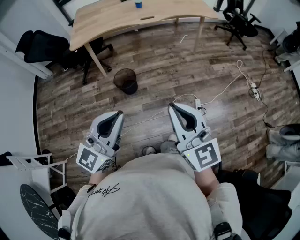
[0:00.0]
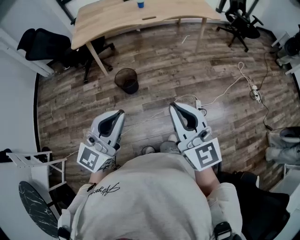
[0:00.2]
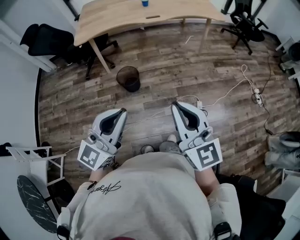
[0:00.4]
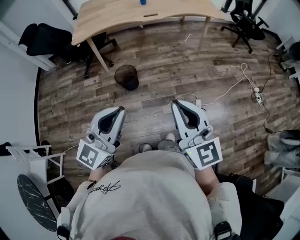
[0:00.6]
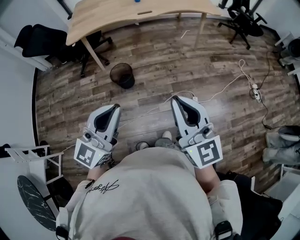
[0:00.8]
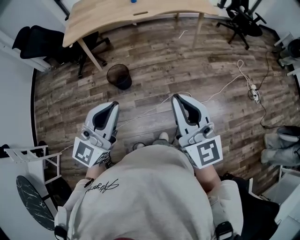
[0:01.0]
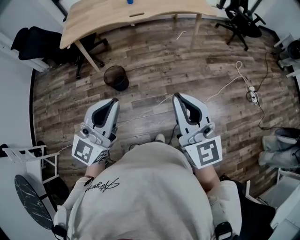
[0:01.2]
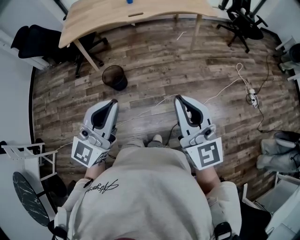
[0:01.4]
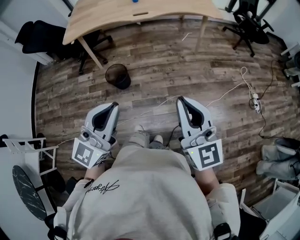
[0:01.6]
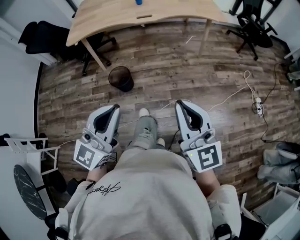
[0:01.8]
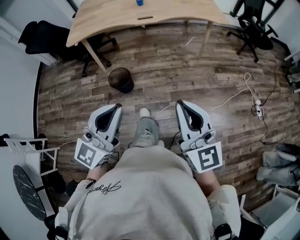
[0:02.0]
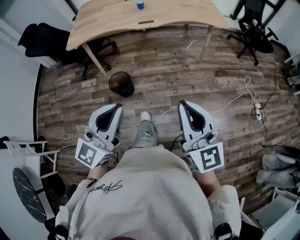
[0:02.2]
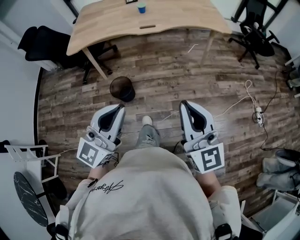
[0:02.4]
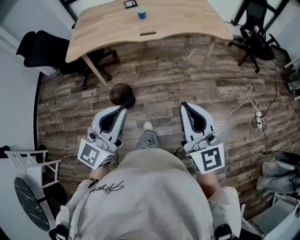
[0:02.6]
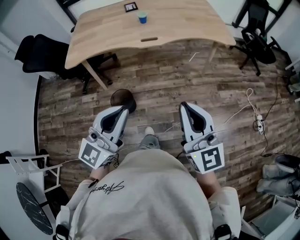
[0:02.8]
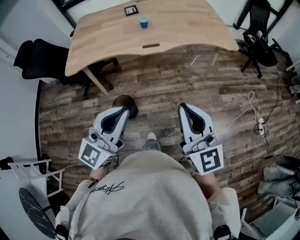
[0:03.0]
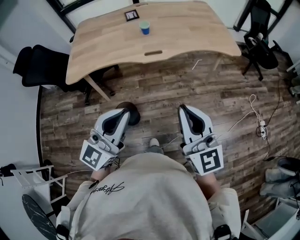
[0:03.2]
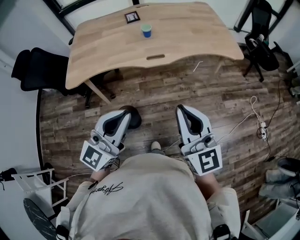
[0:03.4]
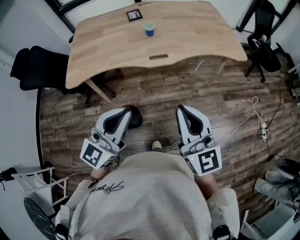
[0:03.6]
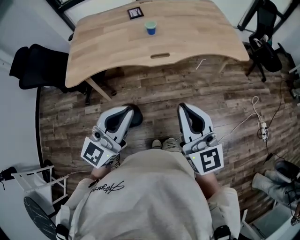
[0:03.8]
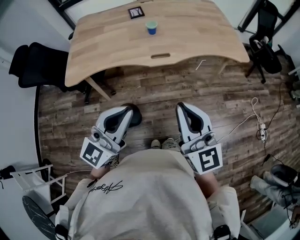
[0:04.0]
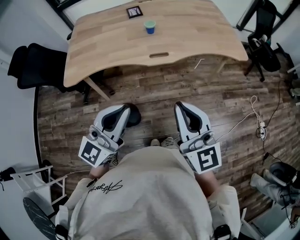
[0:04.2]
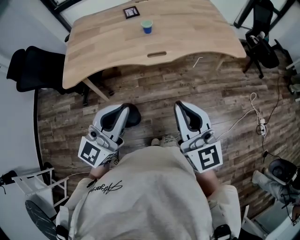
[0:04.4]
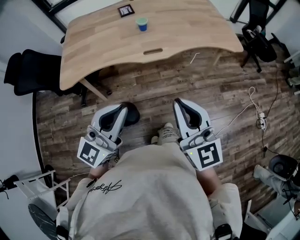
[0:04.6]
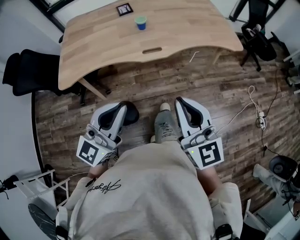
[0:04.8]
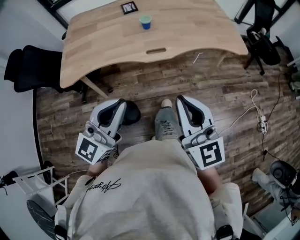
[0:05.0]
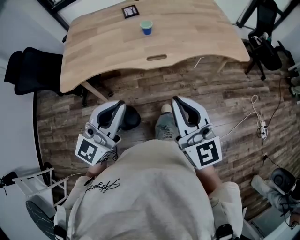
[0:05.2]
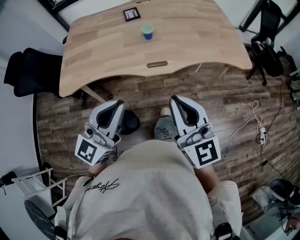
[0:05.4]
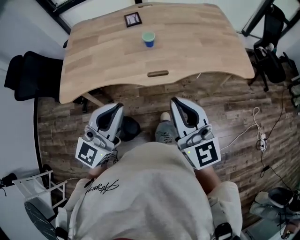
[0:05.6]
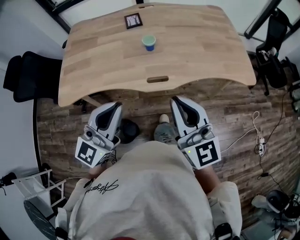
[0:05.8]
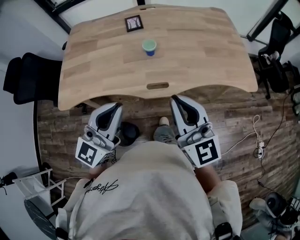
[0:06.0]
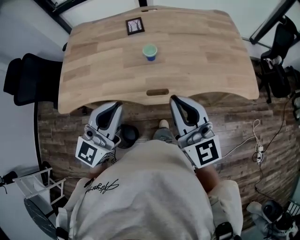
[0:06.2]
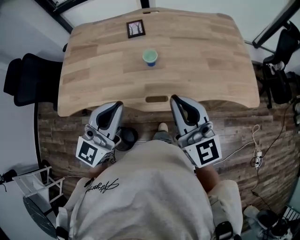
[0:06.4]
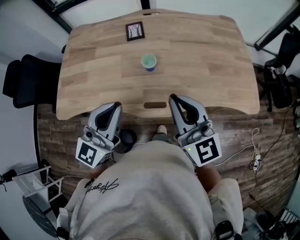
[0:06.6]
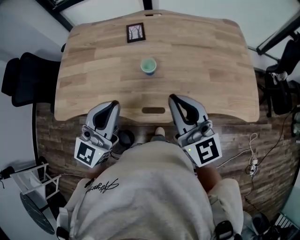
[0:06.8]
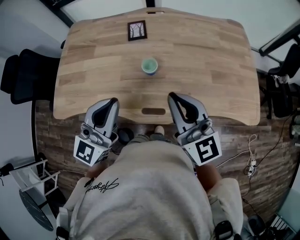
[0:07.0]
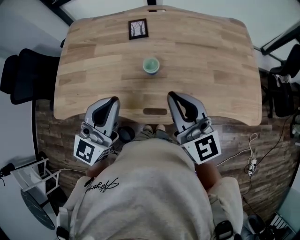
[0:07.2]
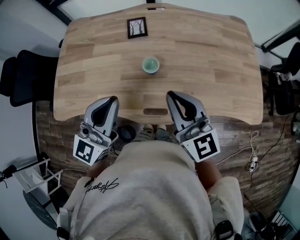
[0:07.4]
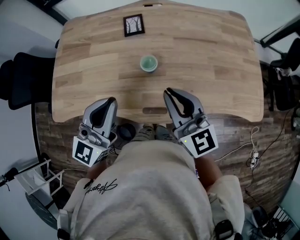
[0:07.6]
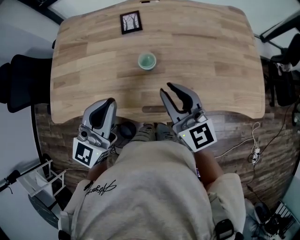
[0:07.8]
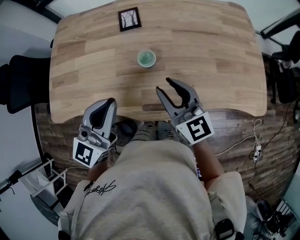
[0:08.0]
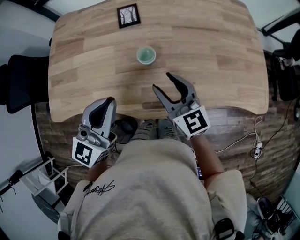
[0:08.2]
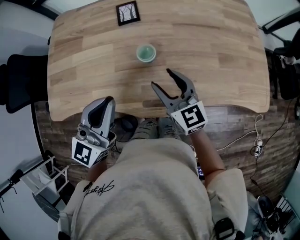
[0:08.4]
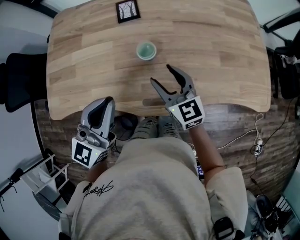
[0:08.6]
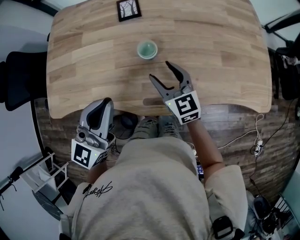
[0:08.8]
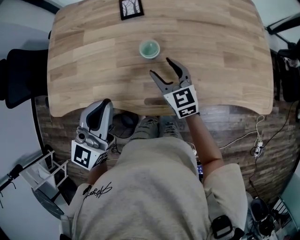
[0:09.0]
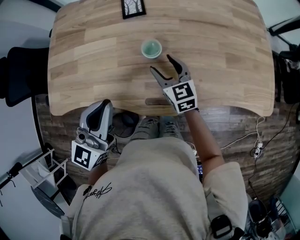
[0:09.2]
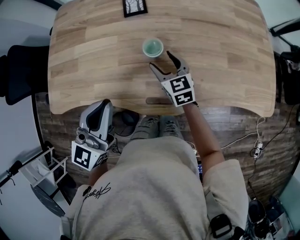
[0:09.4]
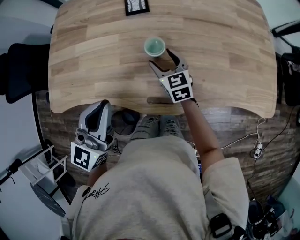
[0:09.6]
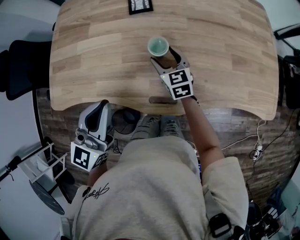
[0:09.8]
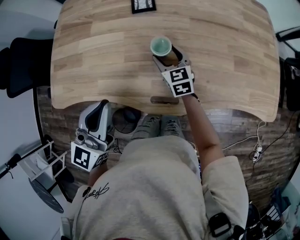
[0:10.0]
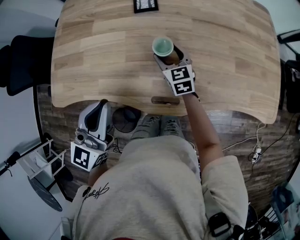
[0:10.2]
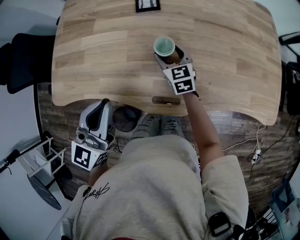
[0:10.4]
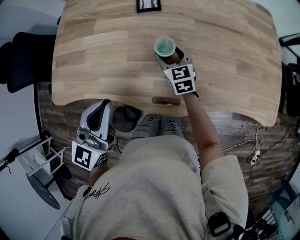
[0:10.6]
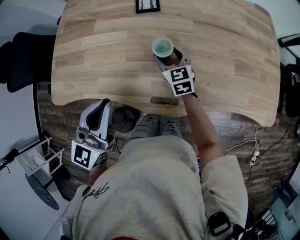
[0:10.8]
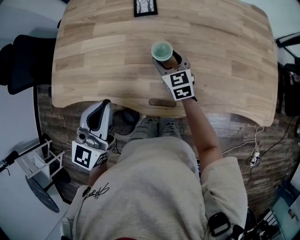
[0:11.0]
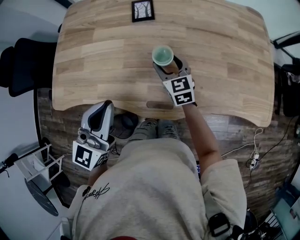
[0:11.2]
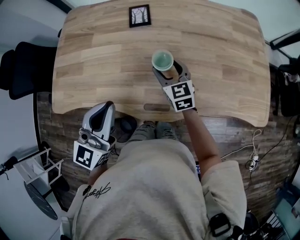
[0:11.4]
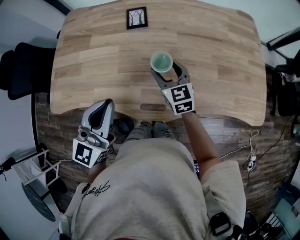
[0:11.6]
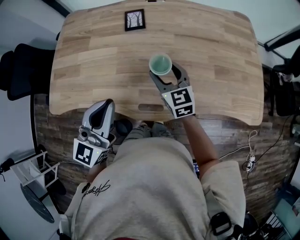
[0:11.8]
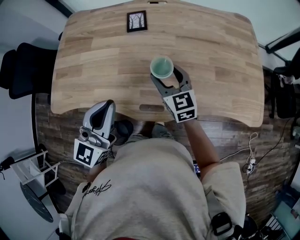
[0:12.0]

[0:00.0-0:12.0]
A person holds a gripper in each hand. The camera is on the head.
0:00.0 to 0:01.6: Both grippers move to the right and forward, roughly 20 cm.
0:01.6 to 0:03.0: The grippers both shift forward by about 25 cm.
0:03.0 to 0:04.4: Both grippers travel together forward and to the left, roughly 15 cm.
0:04.4 to 0:06.0: The two grippers go approximately 25 cm forward.
0:06.0 to 0:07.6: The two grippers go about 20 cm forward.
0:07.6 to 0:09.0: The right gripper moves downward and forward, roughly 20 cm, and opens up. The left gripper shifts by about 5 cm.
0:09.0 to 0:10.4: The right gripper goes some 10 cm forward and downward.
0:10.4 to 0:12.0: The left gripper heads to the right, covering approximately 5 cm. The right gripper shifts roughly 15 cm upward, backward and to the right.

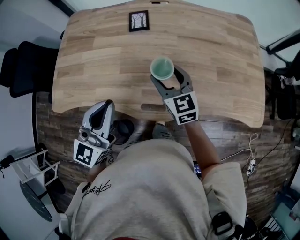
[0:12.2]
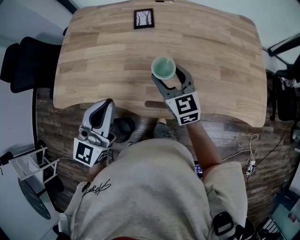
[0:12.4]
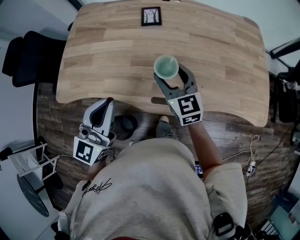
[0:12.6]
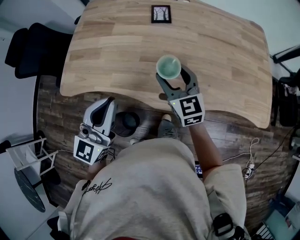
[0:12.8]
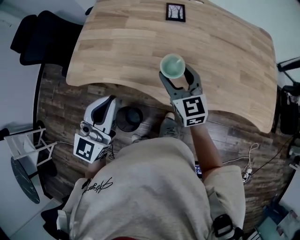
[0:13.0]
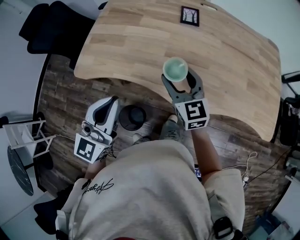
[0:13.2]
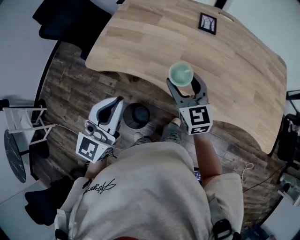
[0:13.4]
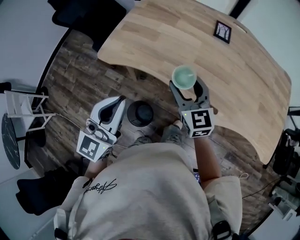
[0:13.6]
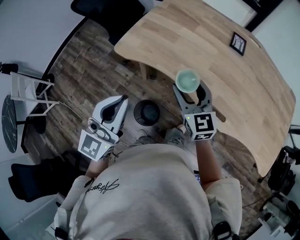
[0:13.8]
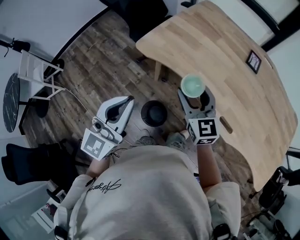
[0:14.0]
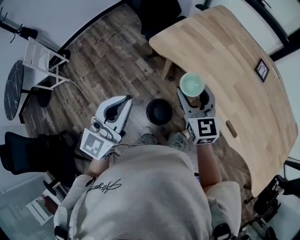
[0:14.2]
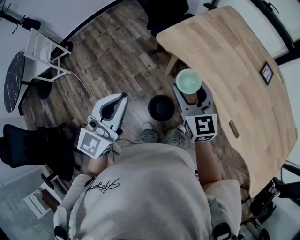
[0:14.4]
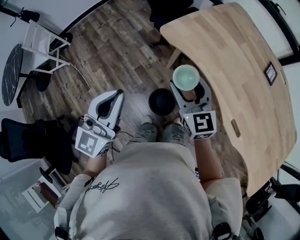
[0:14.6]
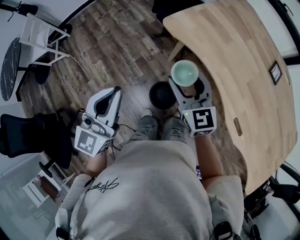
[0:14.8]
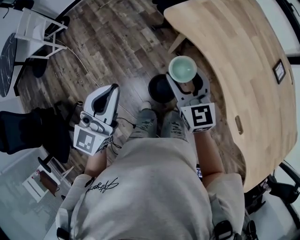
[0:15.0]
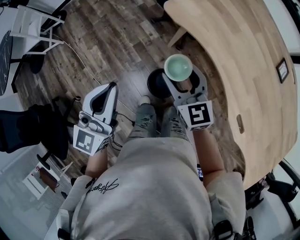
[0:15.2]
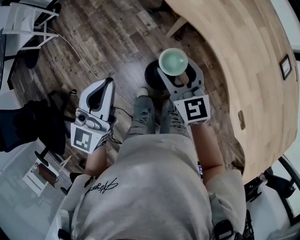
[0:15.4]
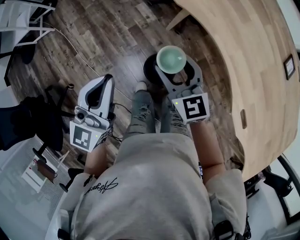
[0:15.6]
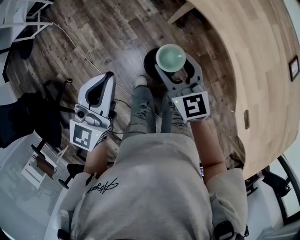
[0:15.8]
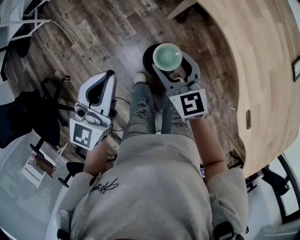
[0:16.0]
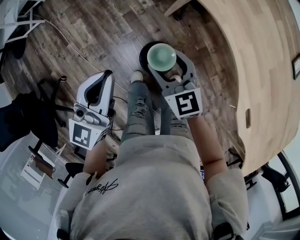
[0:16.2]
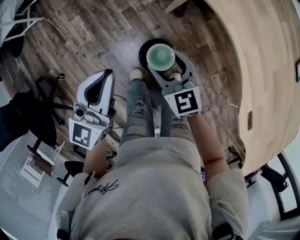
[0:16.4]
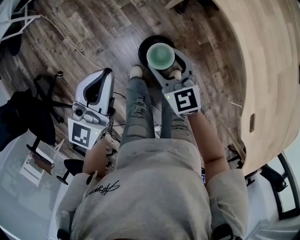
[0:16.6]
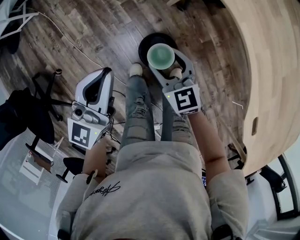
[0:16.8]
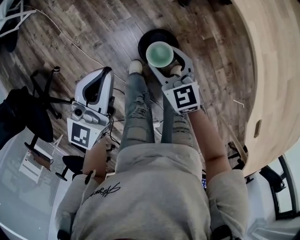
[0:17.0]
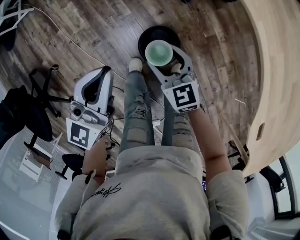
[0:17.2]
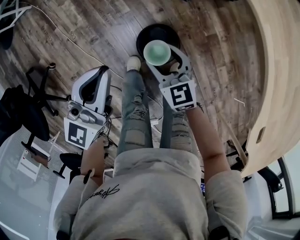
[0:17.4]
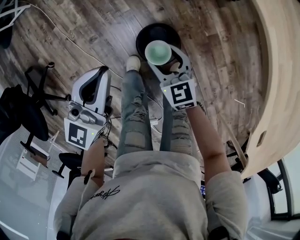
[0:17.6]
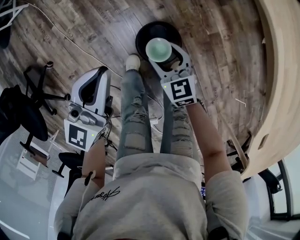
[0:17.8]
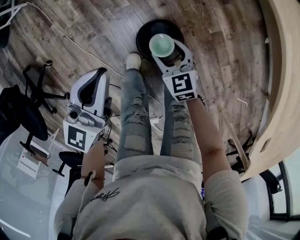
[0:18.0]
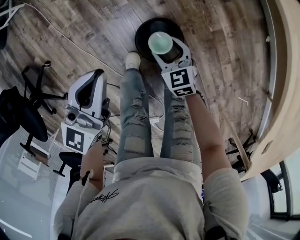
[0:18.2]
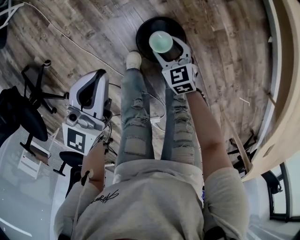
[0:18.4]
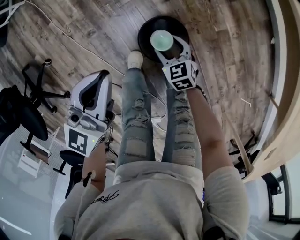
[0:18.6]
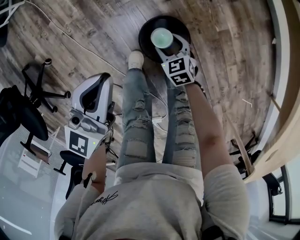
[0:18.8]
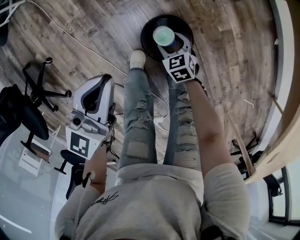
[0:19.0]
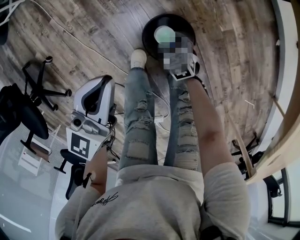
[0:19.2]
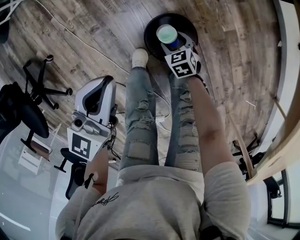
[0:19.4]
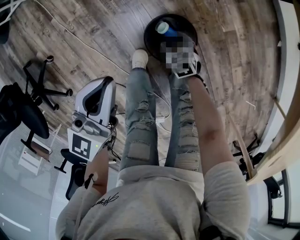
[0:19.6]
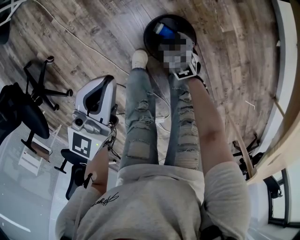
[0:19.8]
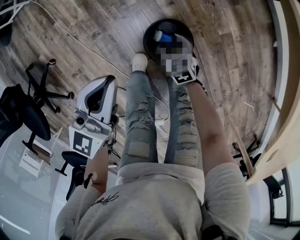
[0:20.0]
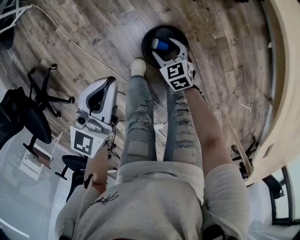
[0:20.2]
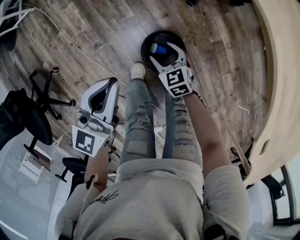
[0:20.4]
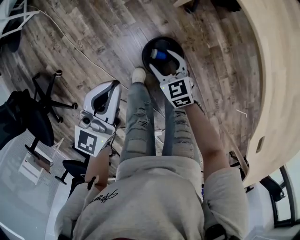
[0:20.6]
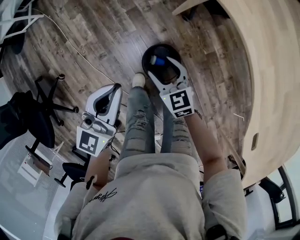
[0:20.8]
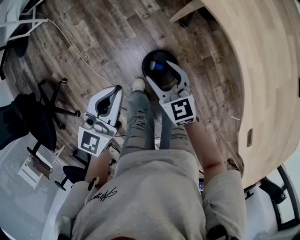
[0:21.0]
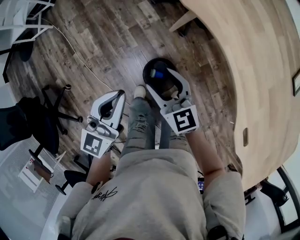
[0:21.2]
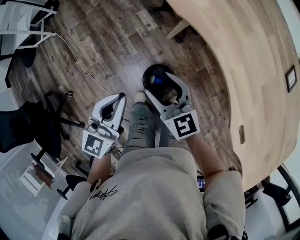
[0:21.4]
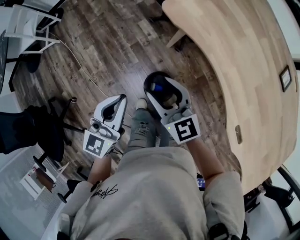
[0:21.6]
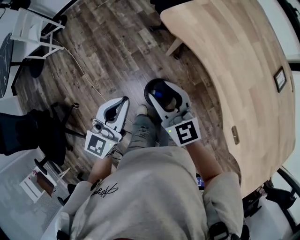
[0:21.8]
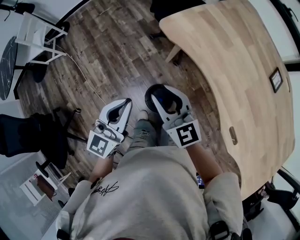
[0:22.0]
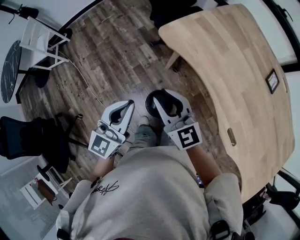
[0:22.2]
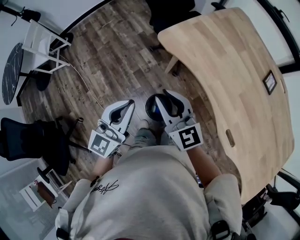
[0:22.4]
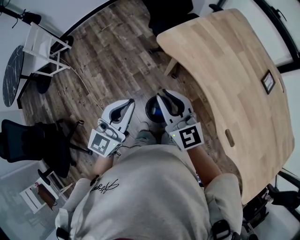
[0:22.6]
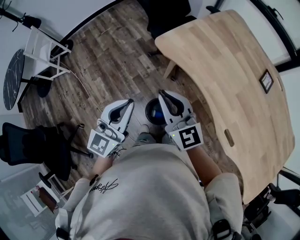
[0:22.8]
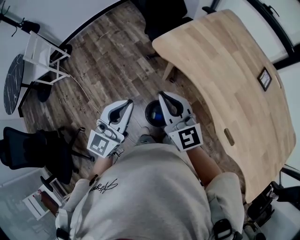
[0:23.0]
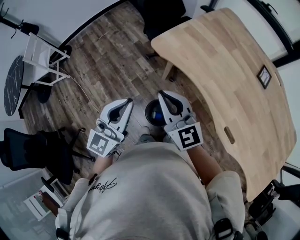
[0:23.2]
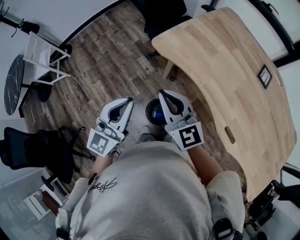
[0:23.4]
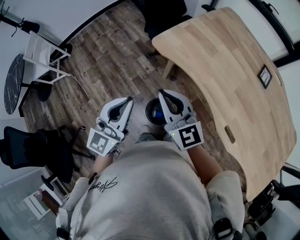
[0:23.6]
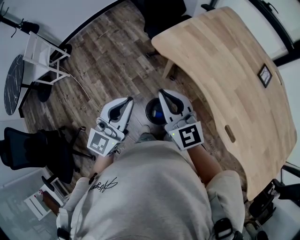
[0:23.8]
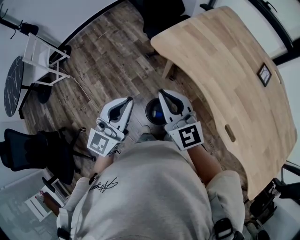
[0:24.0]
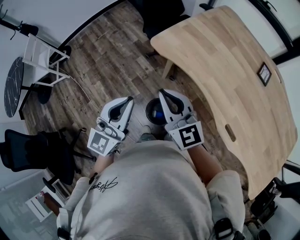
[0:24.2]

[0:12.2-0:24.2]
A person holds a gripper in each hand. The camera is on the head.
0:12.2 to 0:13.8: Both grippers move to the left and backward, approximately 35 cm. The left gripper turns by approximately 30 degrees, while the right gripper changes its angle by about 20 degrees.
0:13.8 to 0:15.2: The right gripper ends up some 25 cm from where it was, and turns by roughly 30 degrees; the left gripper changes place by approximately 20 cm, and turns by about 30 degrees.
0:15.2 to 0:16.6: The two grippers go about 20 cm downward.
0:16.6 to 0:18.2: The right gripper heads downward, covering about 25 cm; the left gripper goes approximately 15 cm downward.
0:18.2 to 0:19.8: The right gripper travels downward by about 15 cm.
0:19.8 to 0:21.2: The right gripper is displaced upward by some 40 cm, and angles its fingers upward, by approximately 40 degrees. The left gripper heads upward, covering some 15 cm.
0:21.2 to 0:22.6: Both grippers travel together upward, about 20 cm. The right gripper closes its fingers.
0:22.6 to 0:24.2: The grippers move only a little.
